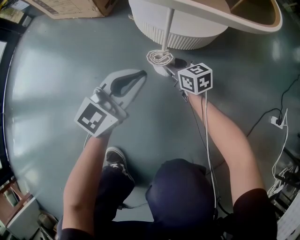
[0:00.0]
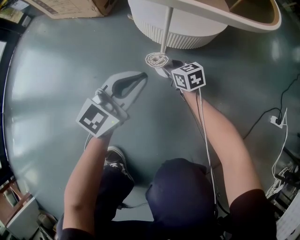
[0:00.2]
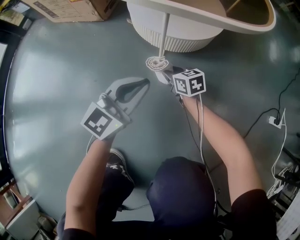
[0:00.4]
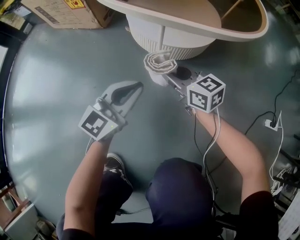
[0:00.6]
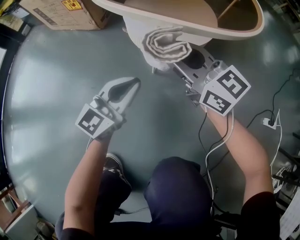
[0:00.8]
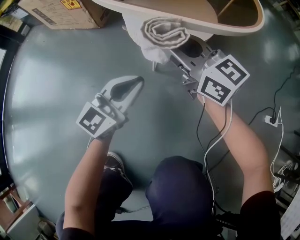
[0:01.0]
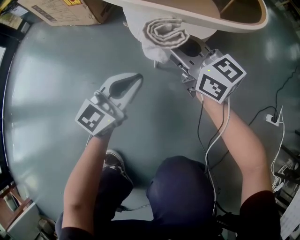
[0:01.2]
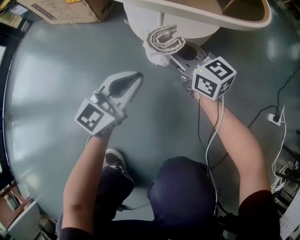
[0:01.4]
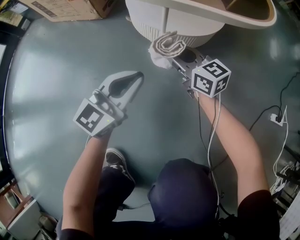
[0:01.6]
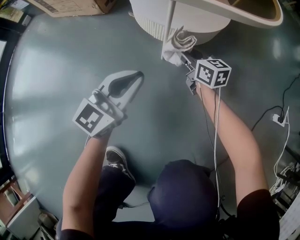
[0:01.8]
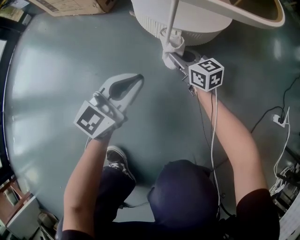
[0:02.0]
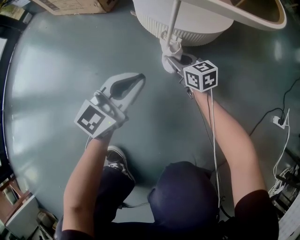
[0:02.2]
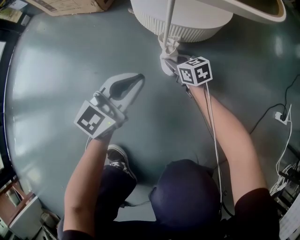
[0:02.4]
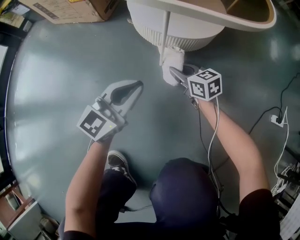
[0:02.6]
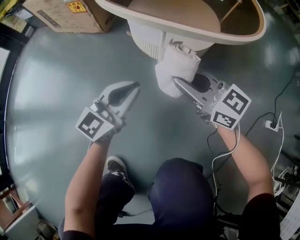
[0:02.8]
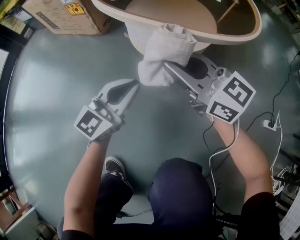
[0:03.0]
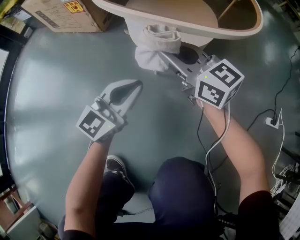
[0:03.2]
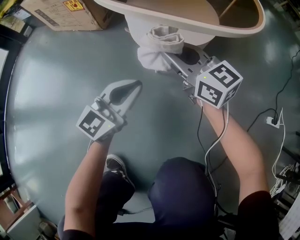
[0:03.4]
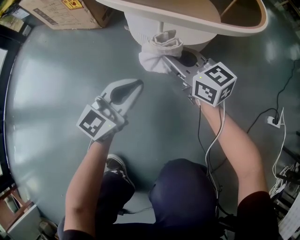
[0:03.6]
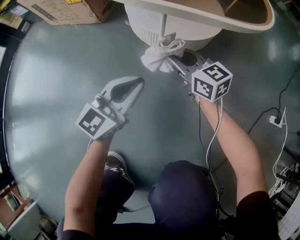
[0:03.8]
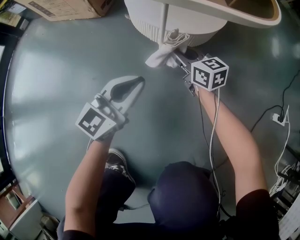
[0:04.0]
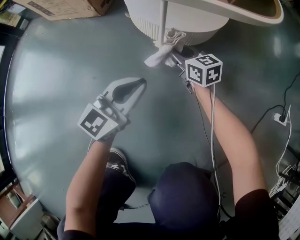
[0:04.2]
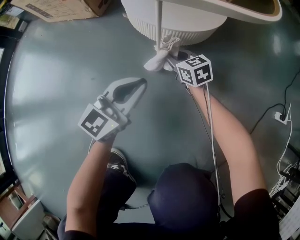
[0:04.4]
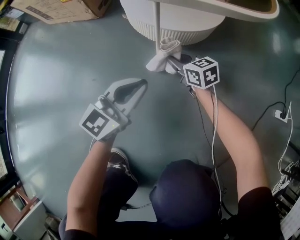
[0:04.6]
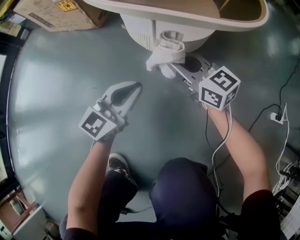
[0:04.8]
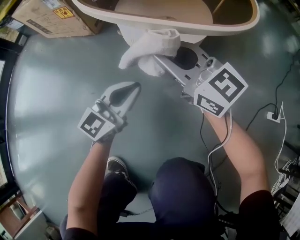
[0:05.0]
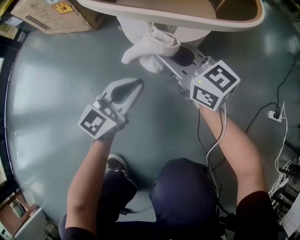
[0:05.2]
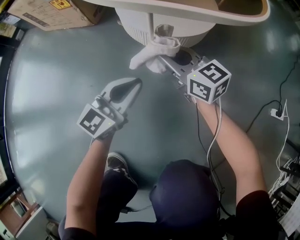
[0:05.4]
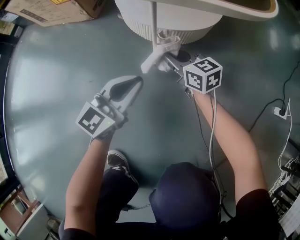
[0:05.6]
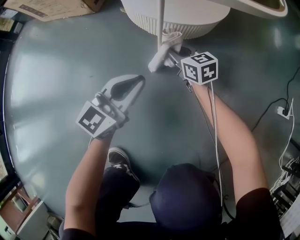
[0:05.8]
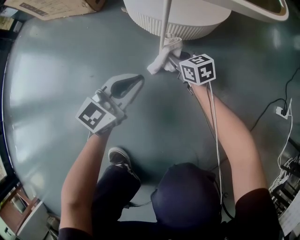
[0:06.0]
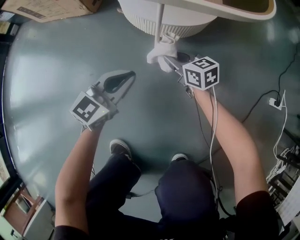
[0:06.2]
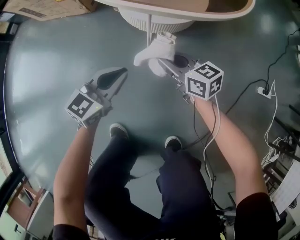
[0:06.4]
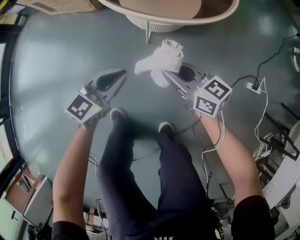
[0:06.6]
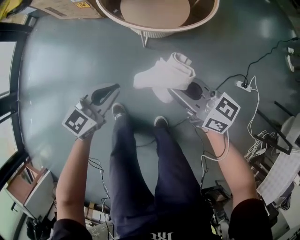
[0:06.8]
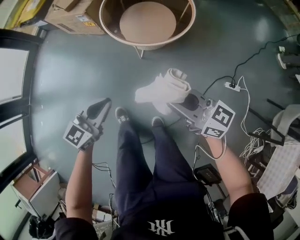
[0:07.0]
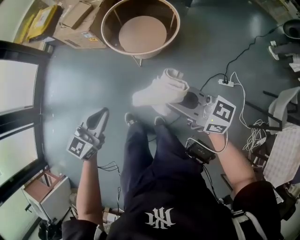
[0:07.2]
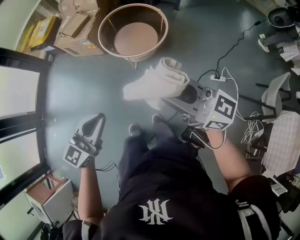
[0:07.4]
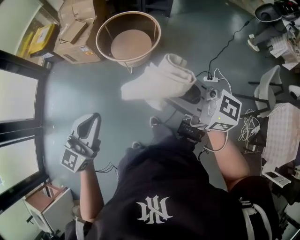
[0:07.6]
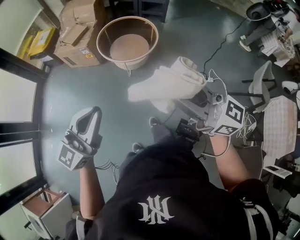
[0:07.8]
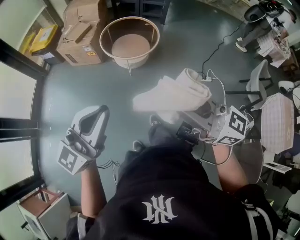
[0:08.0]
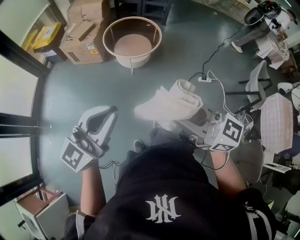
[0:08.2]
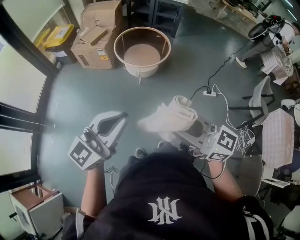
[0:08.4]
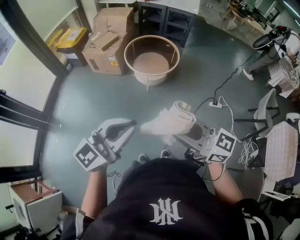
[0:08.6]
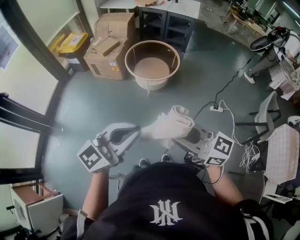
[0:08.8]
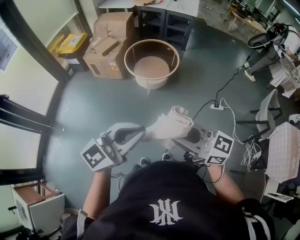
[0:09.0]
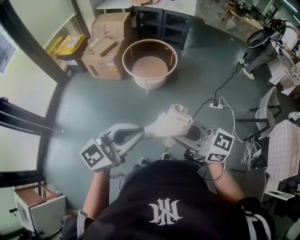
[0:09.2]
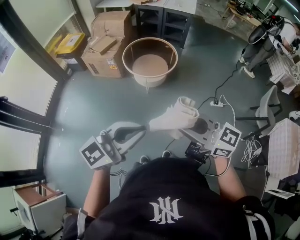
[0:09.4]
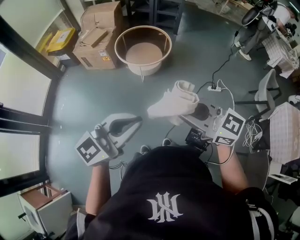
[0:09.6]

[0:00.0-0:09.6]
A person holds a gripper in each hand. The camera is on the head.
0:00.0 to 0:01.6: The right gripper moves up and down over approximately 30 cm, changing direction 2 times.
0:01.6 to 0:03.2: The right gripper goes roughly 15 cm upward.
0:03.2 to 0:04.8: The right gripper travels downward and back again, some 25 cm each way.
0:04.8 to 0:06.4: The right gripper goes up and down, approximately 30 cm each way, reversing 2 times. The left gripper shifts about 5 cm upward.
0:06.4 to 0:08.0: The two grippers travel together, backward, about 50 cm. Both grippers travel together upward, roughly 90 cm. The left gripper angles its fingers upward, by roughly 30 degrees; the right gripper tilts its fingers about 30 degrees upward.
0:08.0 to 0:09.6: The left gripper moves backward and to the right, approximately 10 cm.

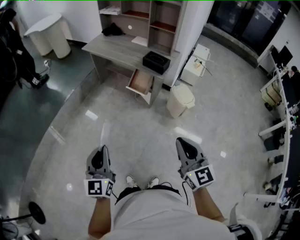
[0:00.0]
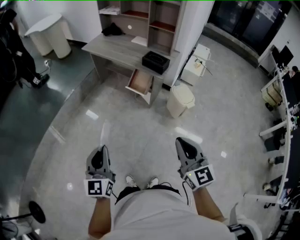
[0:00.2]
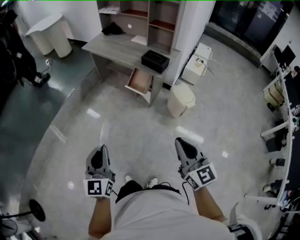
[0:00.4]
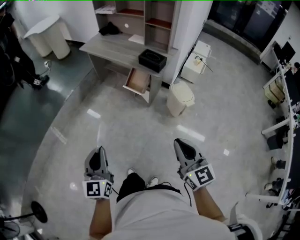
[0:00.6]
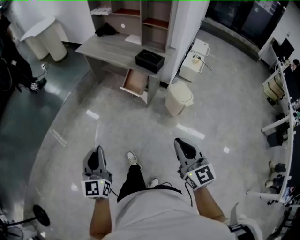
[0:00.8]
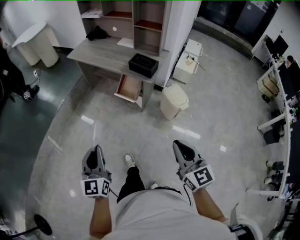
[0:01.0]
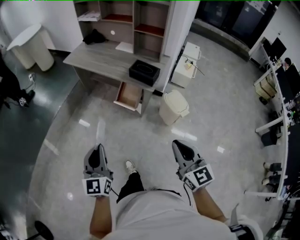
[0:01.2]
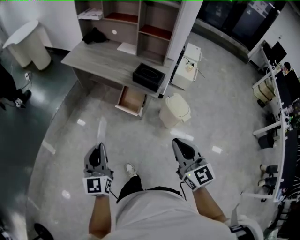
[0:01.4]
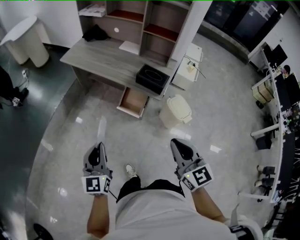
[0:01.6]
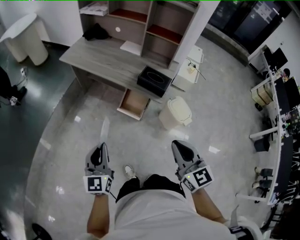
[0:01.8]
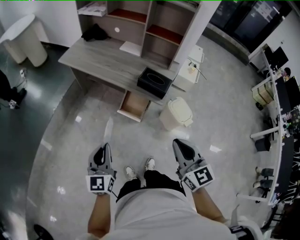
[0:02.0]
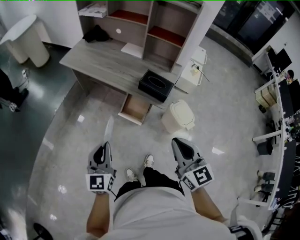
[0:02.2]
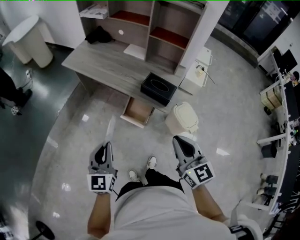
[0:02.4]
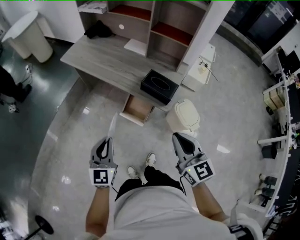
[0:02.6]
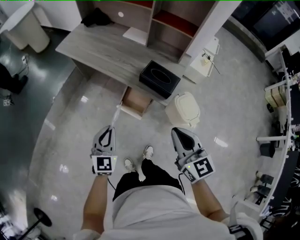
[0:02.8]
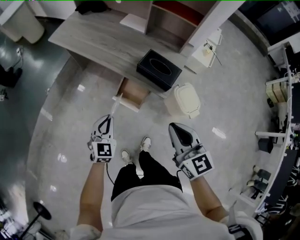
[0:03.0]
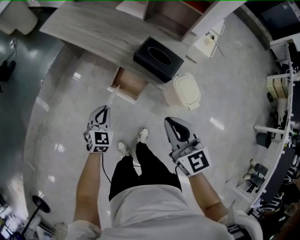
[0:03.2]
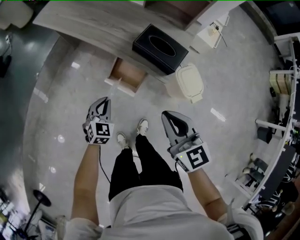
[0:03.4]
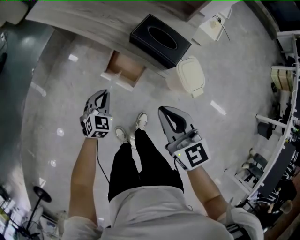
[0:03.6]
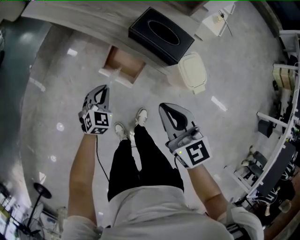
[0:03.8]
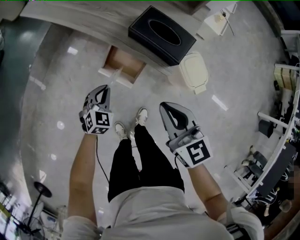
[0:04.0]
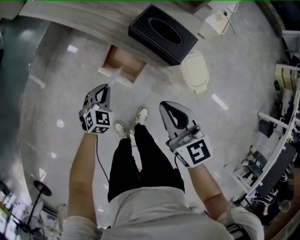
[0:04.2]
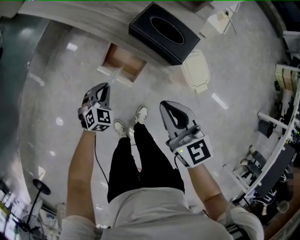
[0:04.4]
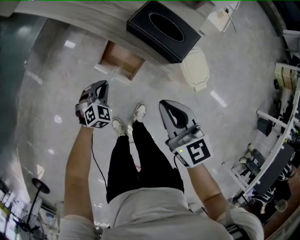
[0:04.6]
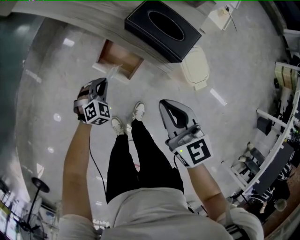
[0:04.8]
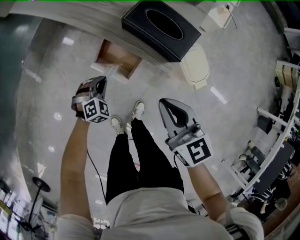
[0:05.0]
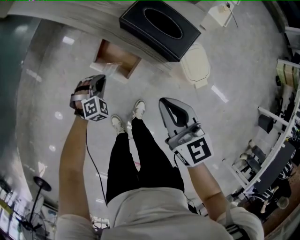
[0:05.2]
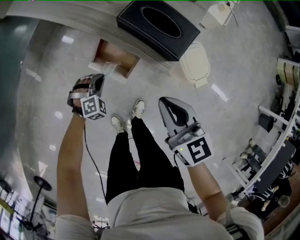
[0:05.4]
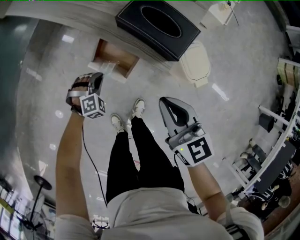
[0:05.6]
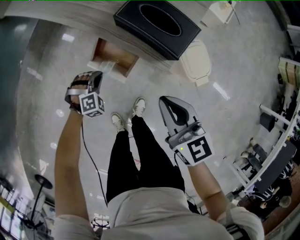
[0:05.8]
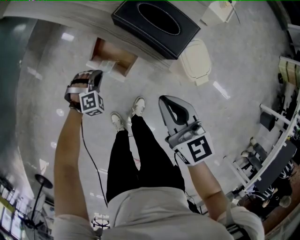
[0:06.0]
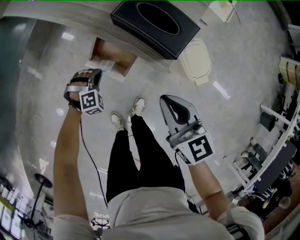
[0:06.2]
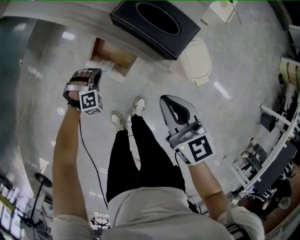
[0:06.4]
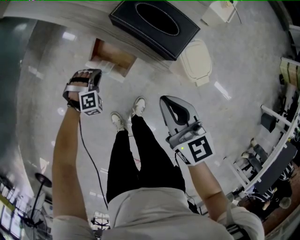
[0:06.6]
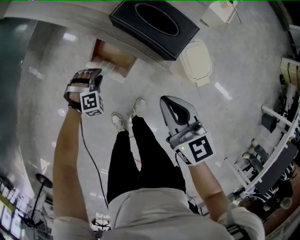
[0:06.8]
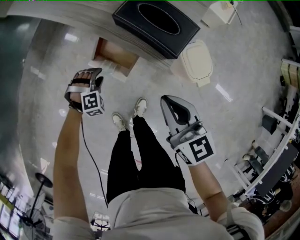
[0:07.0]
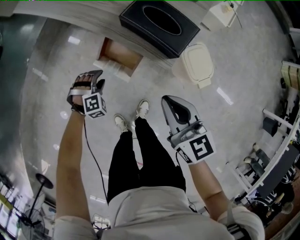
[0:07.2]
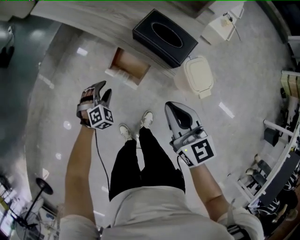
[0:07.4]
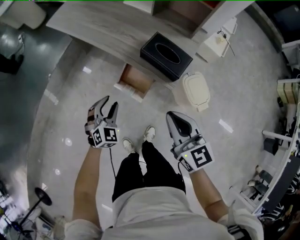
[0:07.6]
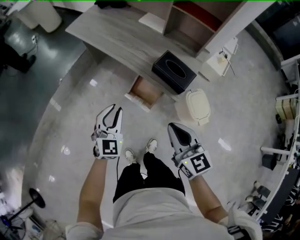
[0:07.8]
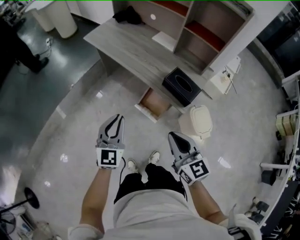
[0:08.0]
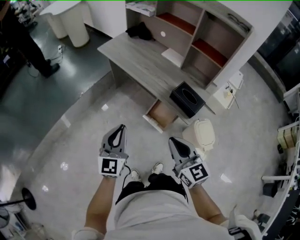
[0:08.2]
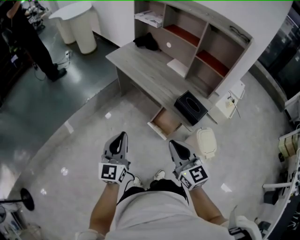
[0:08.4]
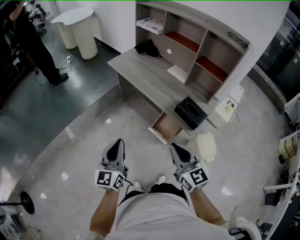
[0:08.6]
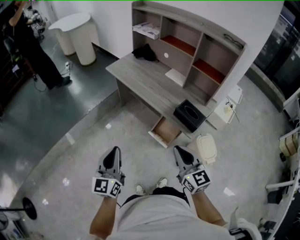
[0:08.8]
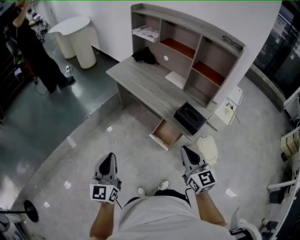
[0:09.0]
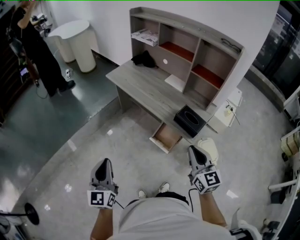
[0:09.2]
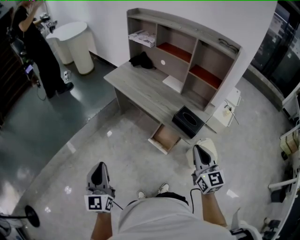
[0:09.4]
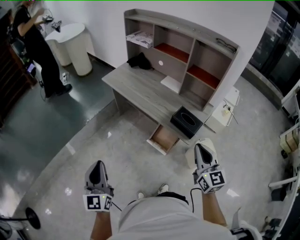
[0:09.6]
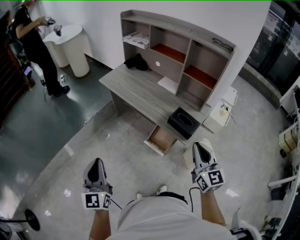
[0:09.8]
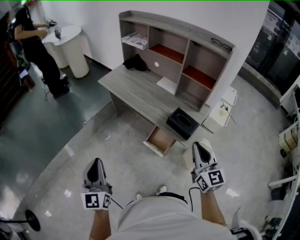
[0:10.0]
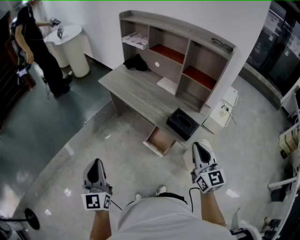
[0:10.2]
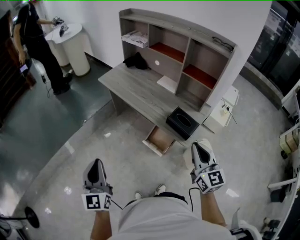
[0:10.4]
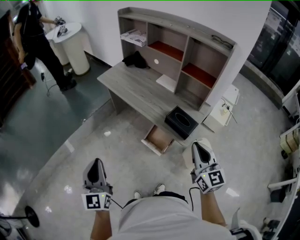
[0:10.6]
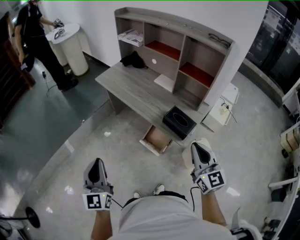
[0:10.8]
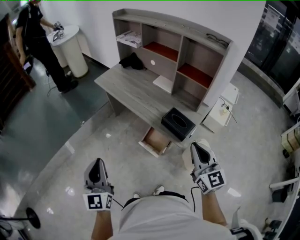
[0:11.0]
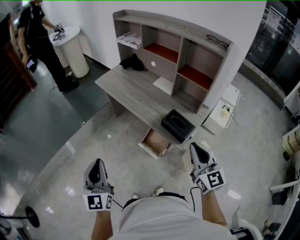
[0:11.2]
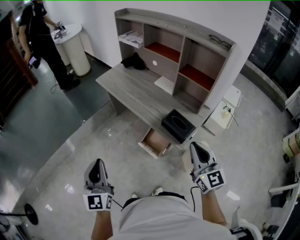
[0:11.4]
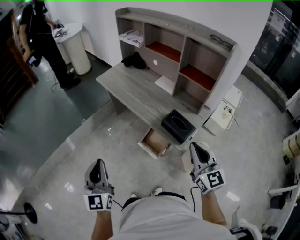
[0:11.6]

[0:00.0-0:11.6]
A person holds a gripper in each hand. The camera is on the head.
0:00.0 to 0:01.4: Both grippers move forward, about 25 cm.
0:01.4 to 0:02.8: The right gripper goes some 20 cm forward, while the left gripper goes approximately 25 cm forward and downward, and changes its angle by approximately 20 degrees.
0:02.8 to 0:04.4: The right gripper is displaced downward and forward by approximately 20 cm, while the left gripper moves downward, some 30 cm, and rotates some 30 degrees.
0:04.4 to 0:05.8: The left gripper heads downward, covering some 10 cm, and swivels some 40 degrees.
0:05.8 to 0:07.2: The left gripper opens its fingers.
0:07.2 to 0:08.8: The right gripper heads upward and to the left, covering some 30 cm, and turns by some 20 degrees. The left gripper travels upward and to the left by some 60 cm, tips its fingers upward by roughly 70 degrees, and closes.
0:08.8 to 0:10.2: The right gripper is displaced to the right and upward by approximately 15 cm.
0:10.2 to 0:11.6: The left gripper shifts about 10 cm to the right; the right gripper shifts approximately 5 cm to the right.

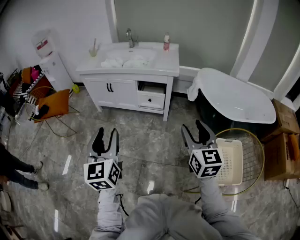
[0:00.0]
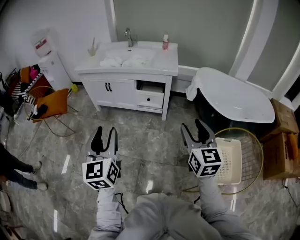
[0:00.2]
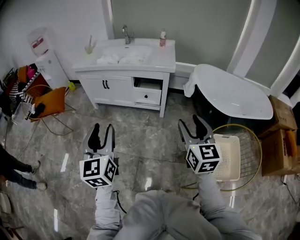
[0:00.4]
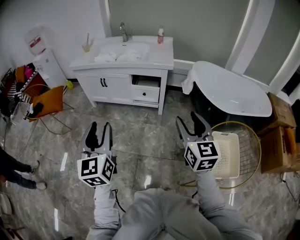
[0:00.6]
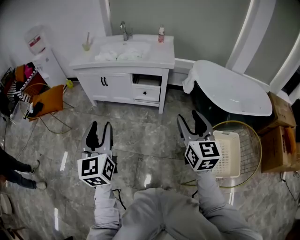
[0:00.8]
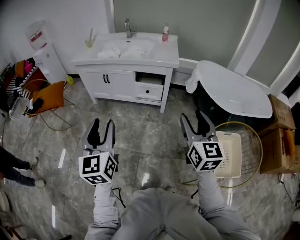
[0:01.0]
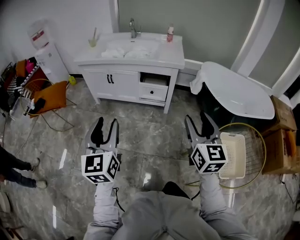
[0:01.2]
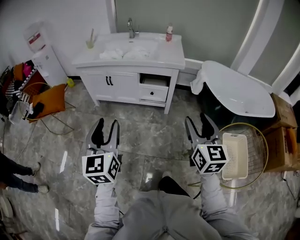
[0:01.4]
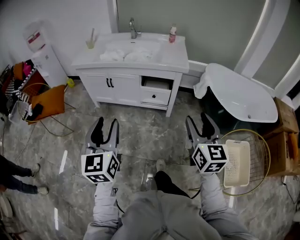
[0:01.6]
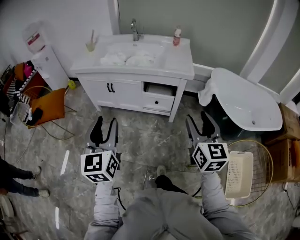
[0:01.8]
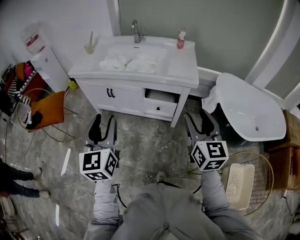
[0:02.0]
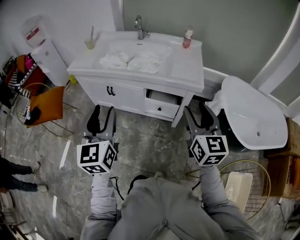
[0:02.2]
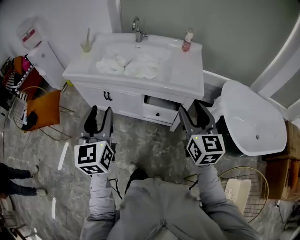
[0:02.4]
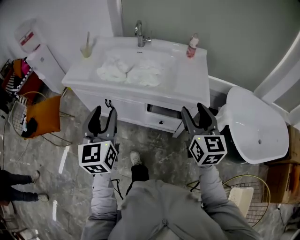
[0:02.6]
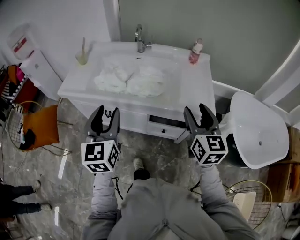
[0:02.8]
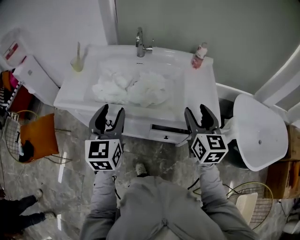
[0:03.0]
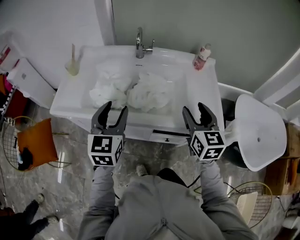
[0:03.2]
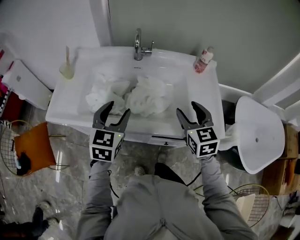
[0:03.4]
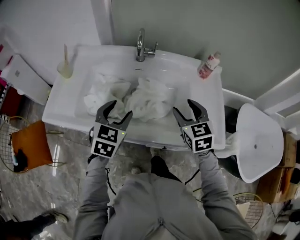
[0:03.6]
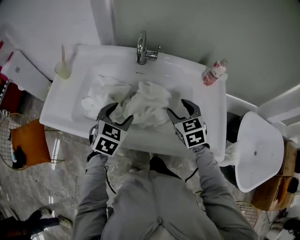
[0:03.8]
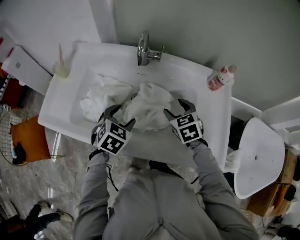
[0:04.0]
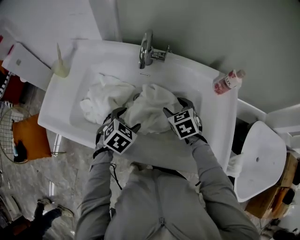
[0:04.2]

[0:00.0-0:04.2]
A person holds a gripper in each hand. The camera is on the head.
0:00.0 to 0:01.4: The right gripper travels to the left by about 5 cm, while the left gripper is displaced to the left and forward by roughly 10 cm.
0:01.4 to 0:02.8: The two grippers travel together, forward, approximately 50 cm.
0:02.8 to 0:04.2: The two grippers go approximately 40 cm forward and downward. The right gripper tilts its fingers some 40 degrees downward. Meanwhile the left gripper angles its fingers downward, by some 50 degrees.
